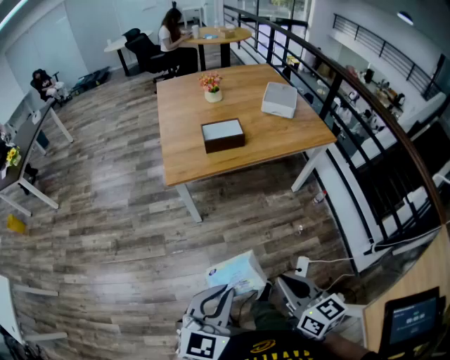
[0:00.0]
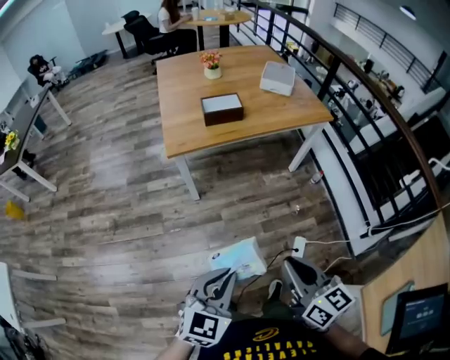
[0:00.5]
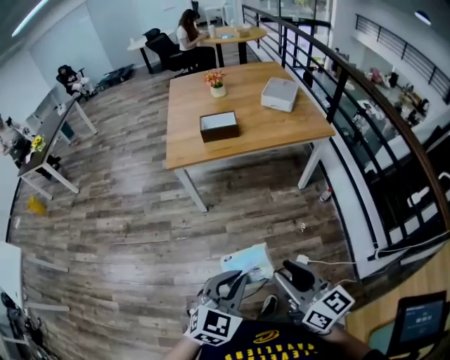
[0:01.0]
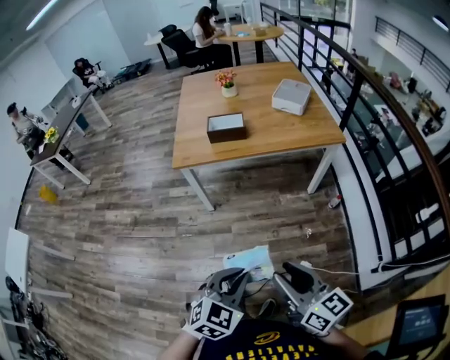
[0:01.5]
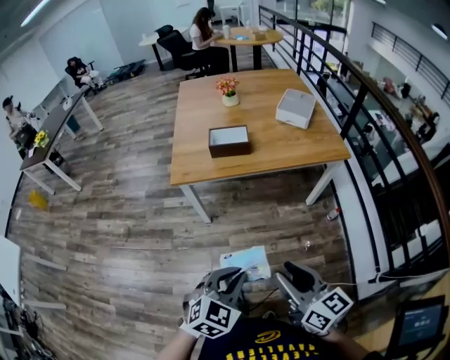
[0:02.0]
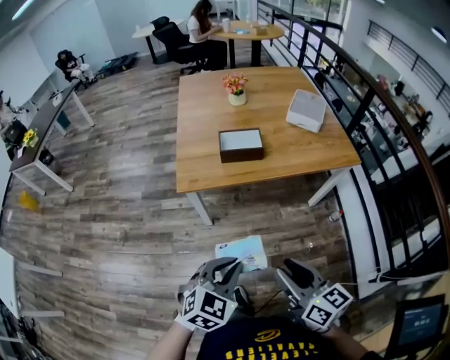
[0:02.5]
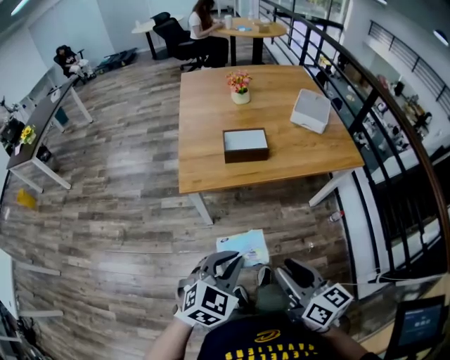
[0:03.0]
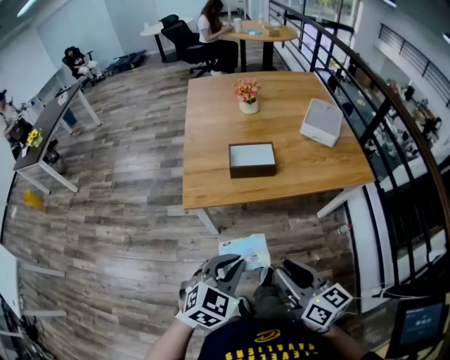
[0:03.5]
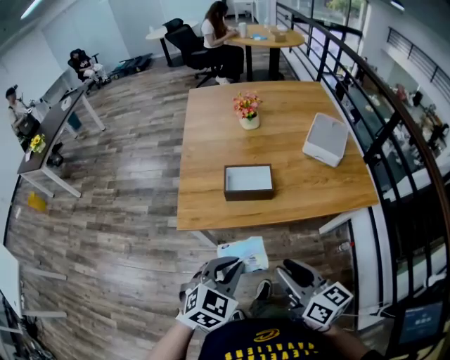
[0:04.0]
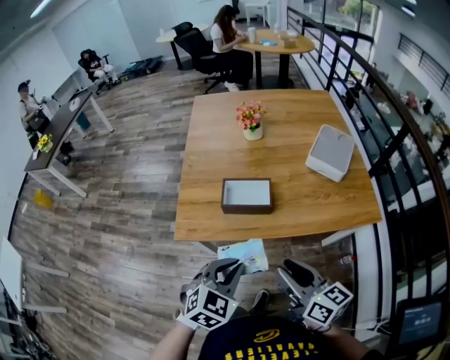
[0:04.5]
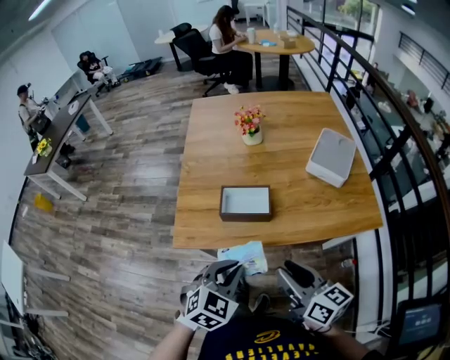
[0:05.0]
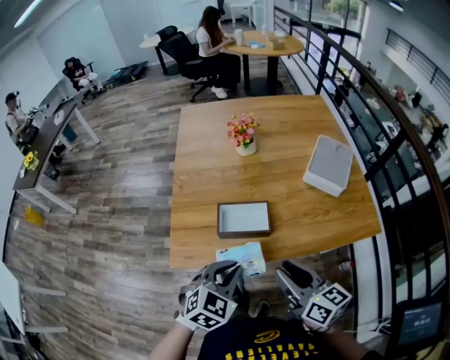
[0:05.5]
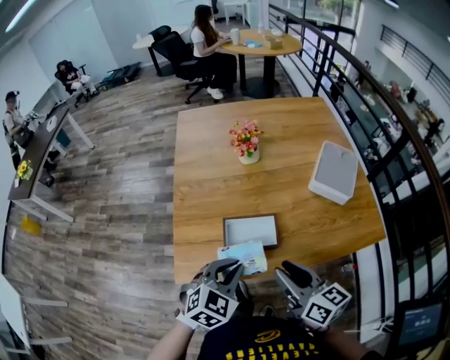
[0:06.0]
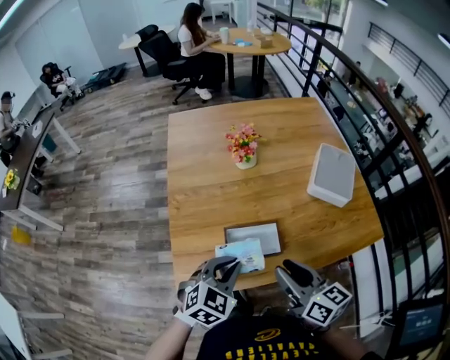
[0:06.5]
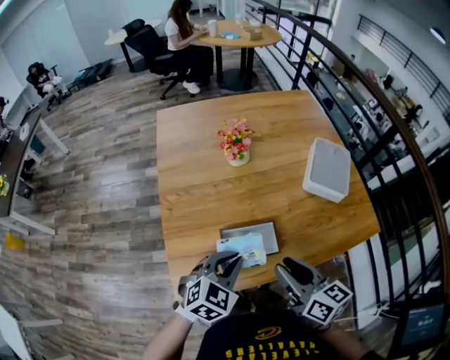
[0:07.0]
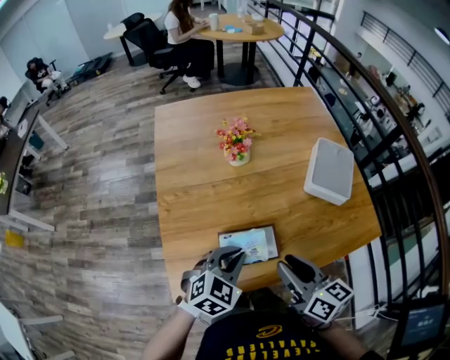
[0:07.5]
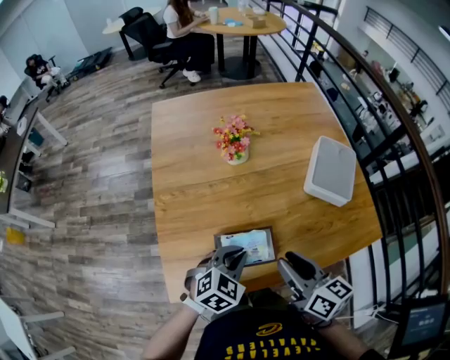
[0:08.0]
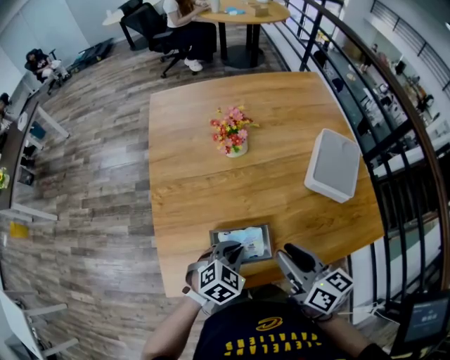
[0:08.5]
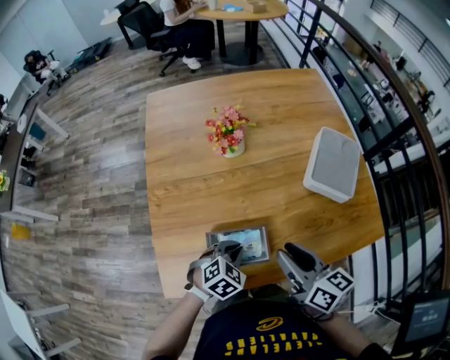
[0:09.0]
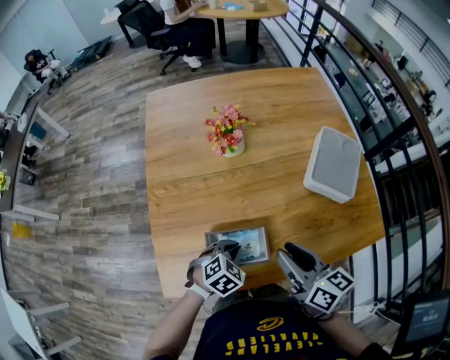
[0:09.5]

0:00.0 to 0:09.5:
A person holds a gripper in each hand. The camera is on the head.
0:00.0 to 0:02.0: The two grippers go some 15 cm to the right and forward. The right gripper opens its fingers.
0:02.0 to 0:04.0: Both grippers travel together forward, approximately 25 cm.
0:04.0 to 0:05.5: Both grippers travel together forward, approximately 15 cm.
0:05.5 to 0:07.5: The two grippers go some 15 cm forward.
0:07.5 to 0:09.5: The left gripper goes some 15 cm downward, and rotates about 20 degrees. Meanwhile the right gripper moves forward, roughly 5 cm.

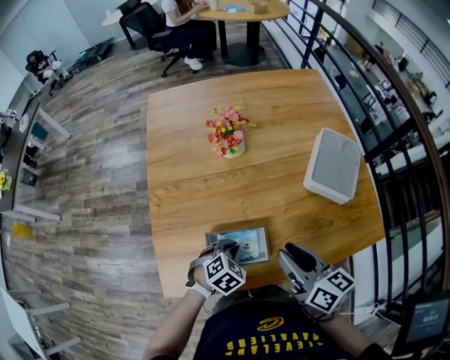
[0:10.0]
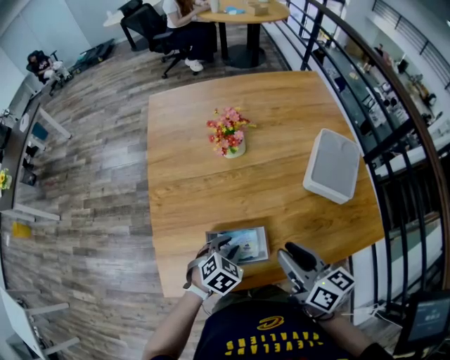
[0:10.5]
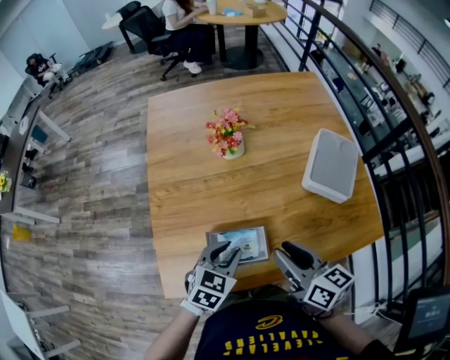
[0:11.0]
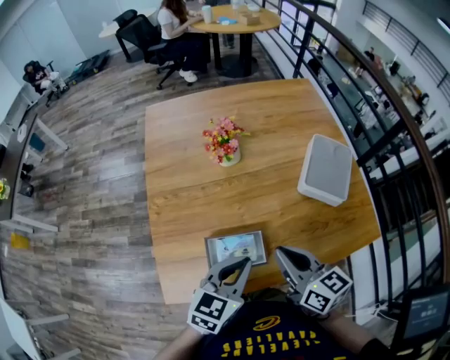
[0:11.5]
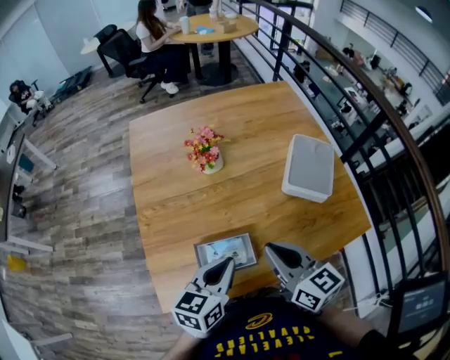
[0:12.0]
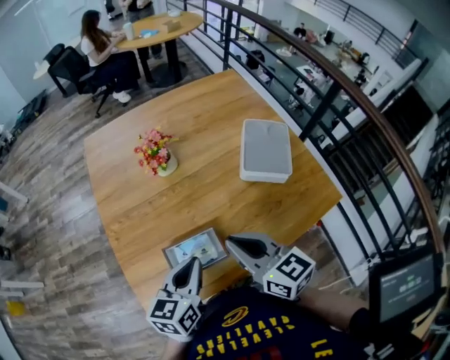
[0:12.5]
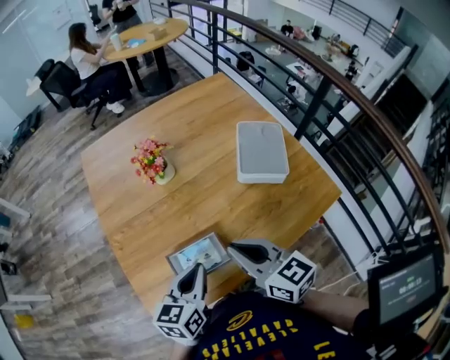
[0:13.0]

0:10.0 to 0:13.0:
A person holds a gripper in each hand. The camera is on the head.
0:10.0 to 0:11.5: The right gripper closes its fingers. The left gripper travels upward by about 20 cm, points its fingers some 40 degrees further upward, and opens, then closes once more.
0:11.5 to 0:13.0: The grippers stay close to where they were, moving slightly.

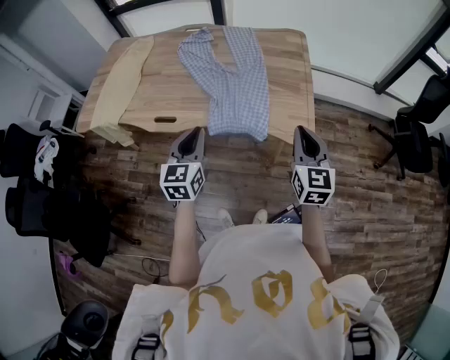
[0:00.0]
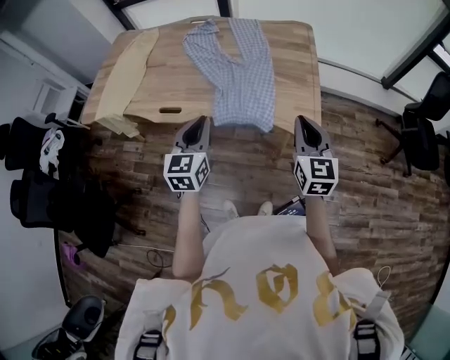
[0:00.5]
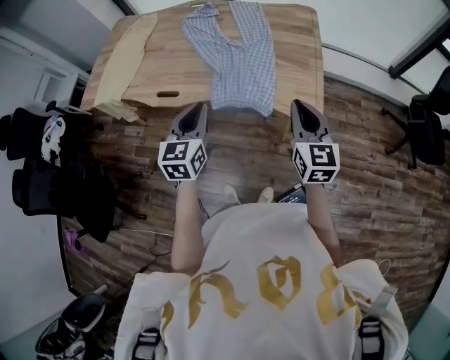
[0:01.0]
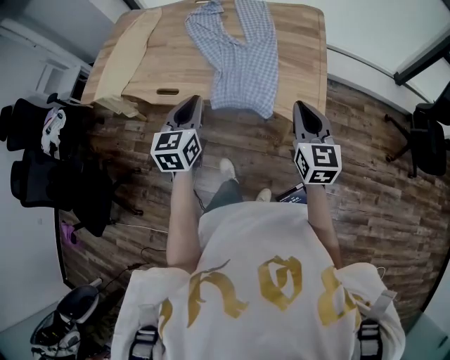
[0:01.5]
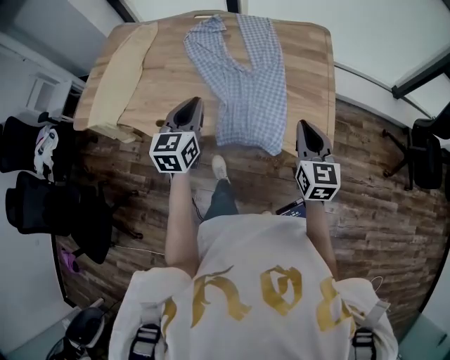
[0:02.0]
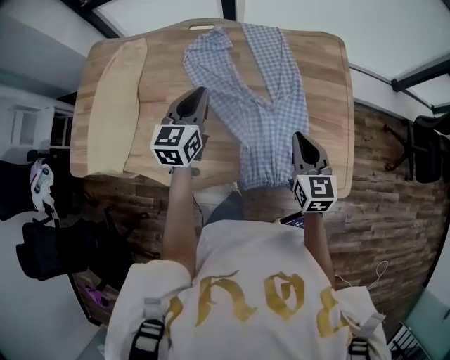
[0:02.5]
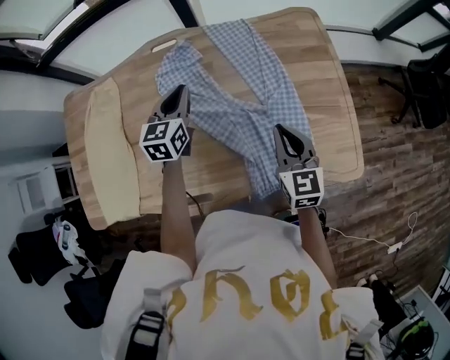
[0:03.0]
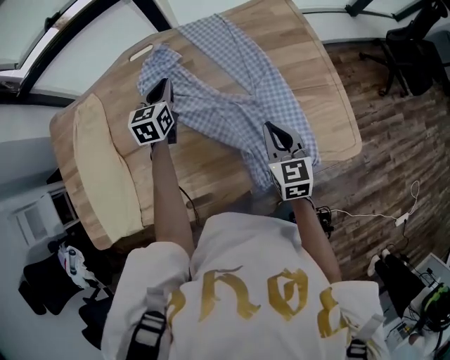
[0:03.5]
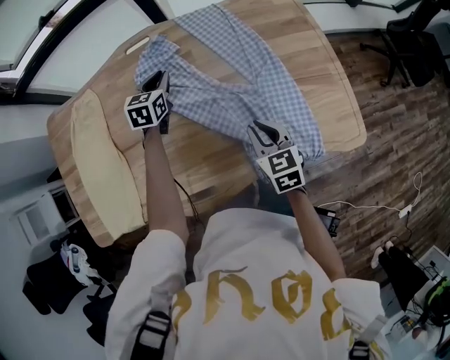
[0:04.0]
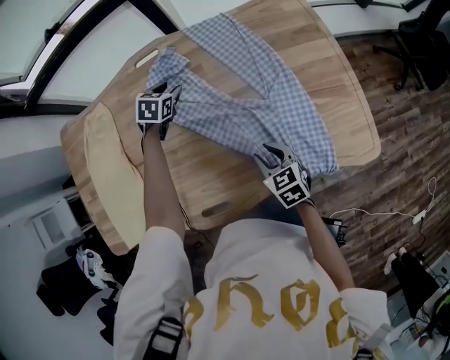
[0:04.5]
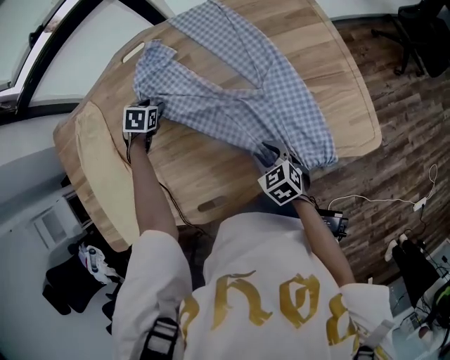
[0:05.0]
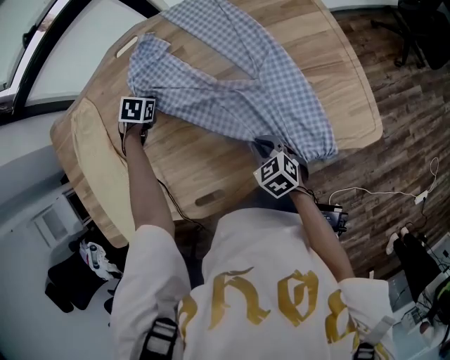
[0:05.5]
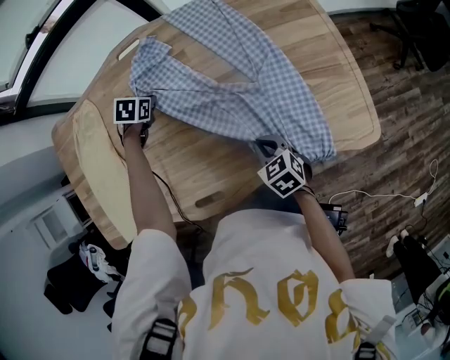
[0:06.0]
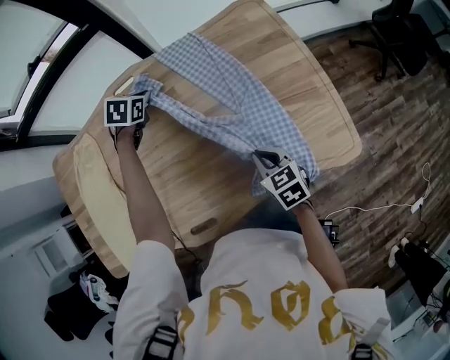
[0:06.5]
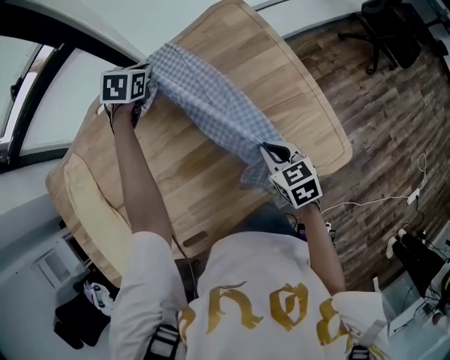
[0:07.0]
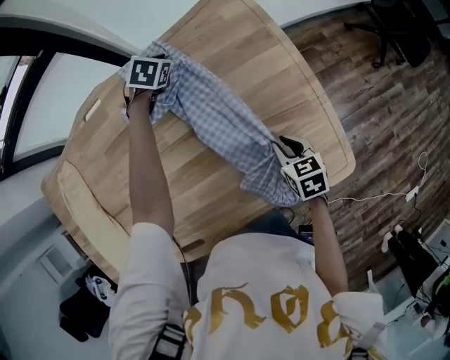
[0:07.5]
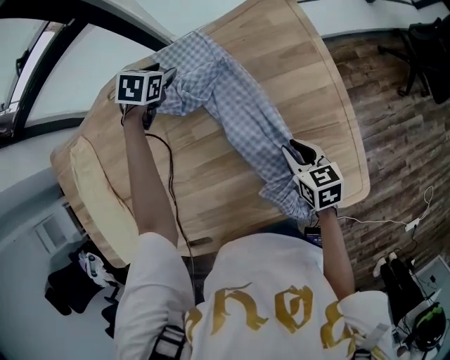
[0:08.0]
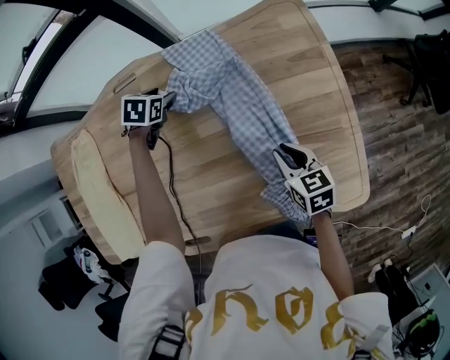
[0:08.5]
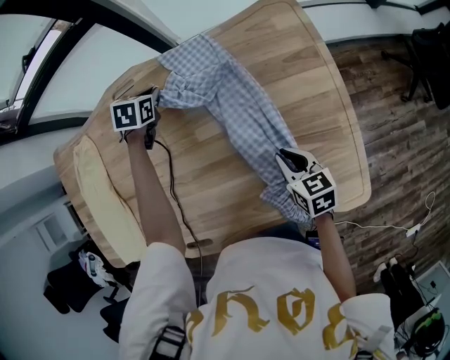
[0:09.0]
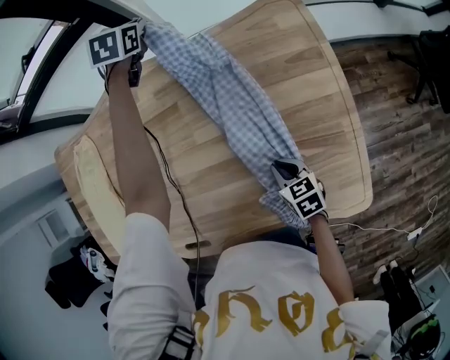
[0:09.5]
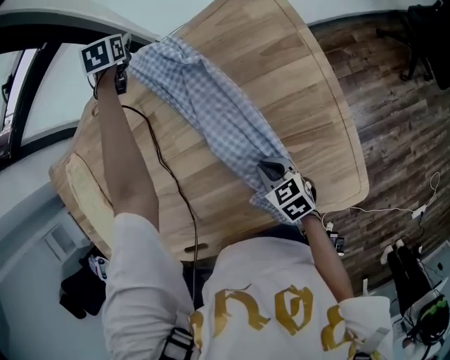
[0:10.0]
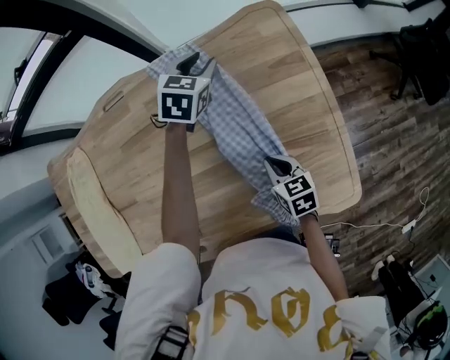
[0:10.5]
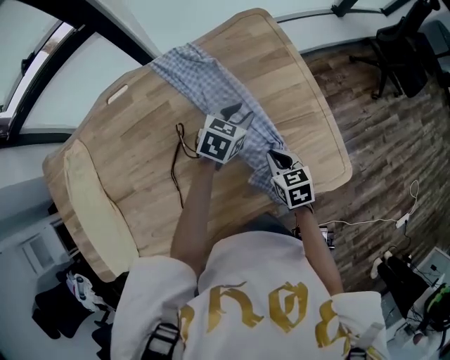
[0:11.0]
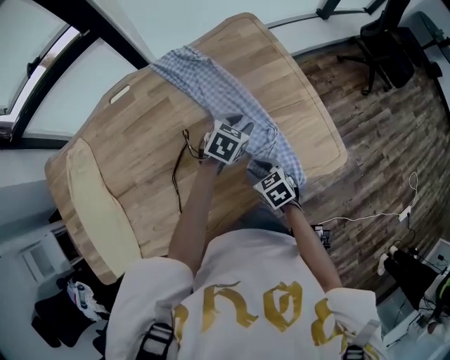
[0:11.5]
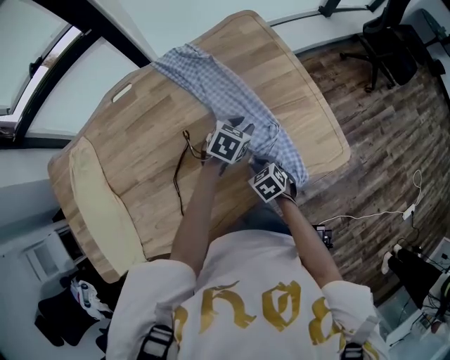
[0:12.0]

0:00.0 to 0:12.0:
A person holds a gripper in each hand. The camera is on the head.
0:00.0 to 0:02.0: Both grippers move forward, approximately 15 cm.
0:02.0 to 0:04.0: The left gripper is displaced forward and downward by about 40 cm, and swivels roughly 30 degrees, while the right gripper moves to the left, forward and downward, approximately 30 cm, and rotates about 20 degrees.
0:04.0 to 0:06.0: The two grippers go roughly 10 cm downward. The left gripper tilts its fingers about 40 degrees downward, and opens, then closes once more; the right gripper changes its angle by some 20 degrees, and opens, then closes once more.
0:06.0 to 0:08.0: The right gripper moves to the right and forward, some 25 cm, and changes its angle by about 20 degrees. Meanwhile the left gripper moves forward and to the right, some 30 cm, and opens.
0:08.0 to 0:10.0: The left gripper goes up and down, approximately 15 cm each way, reversing 2 times, turns by about 20 degrees, and closes, then opens again. Meanwhile the right gripper ends up roughly 10 cm from where it was.
0:10.0 to 0:12.0: The left gripper shifts by some 50 cm, and swivels about 40 degrees; the right gripper changes place by some 15 cm.

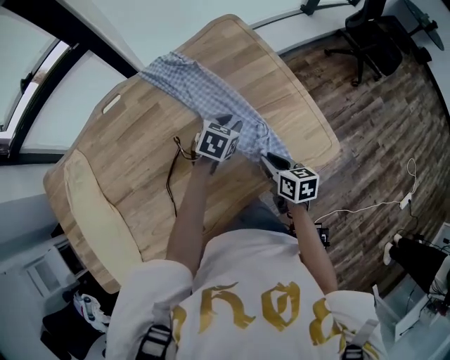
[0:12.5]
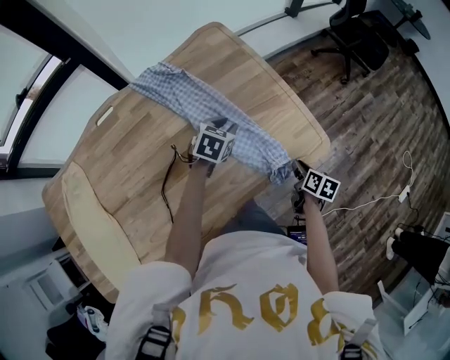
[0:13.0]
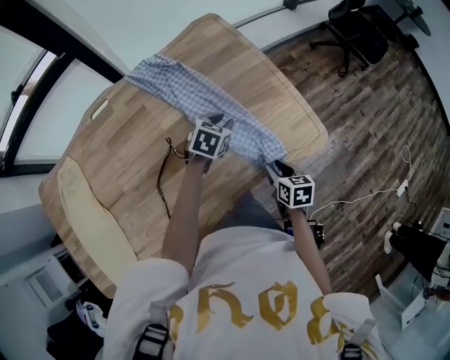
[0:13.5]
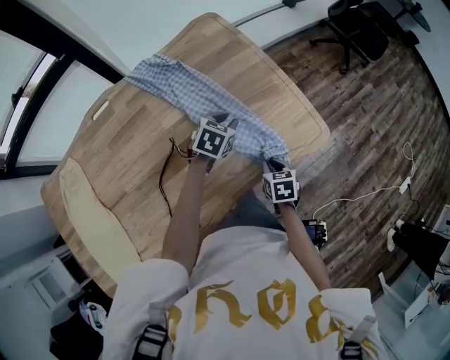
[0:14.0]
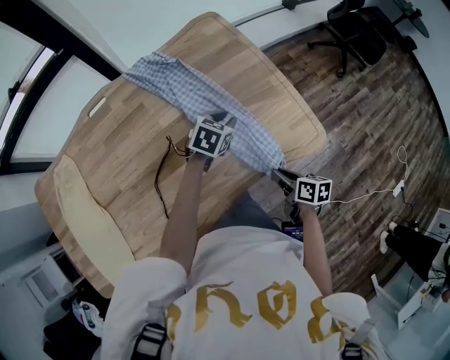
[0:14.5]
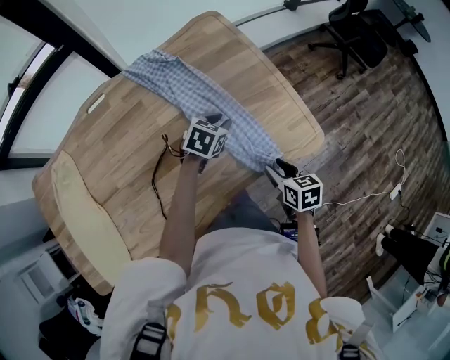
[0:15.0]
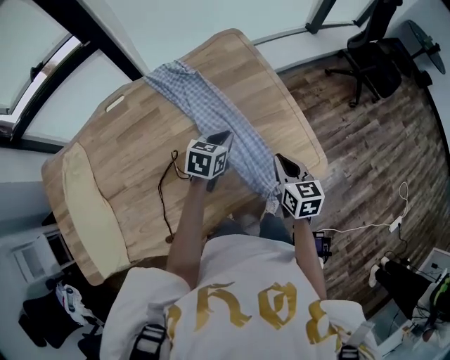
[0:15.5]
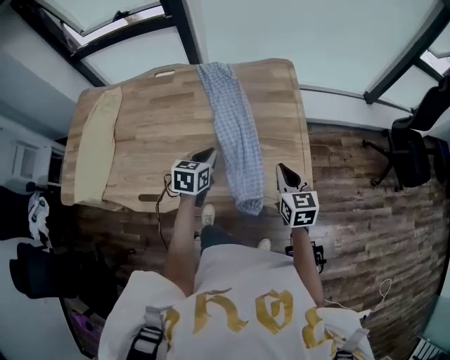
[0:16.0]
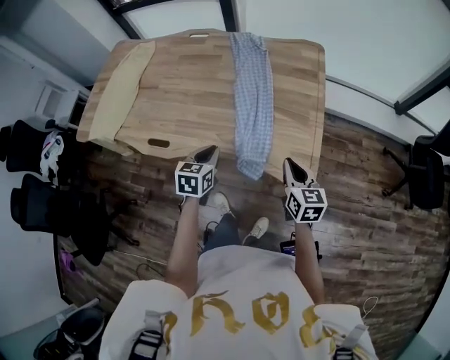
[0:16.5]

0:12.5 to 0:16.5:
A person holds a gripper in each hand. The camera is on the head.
0:12.5 to 0:14.5: The right gripper travels to the right and backward by some 10 cm.
0:14.5 to 0:16.5: The left gripper changes place by some 25 cm, and swivels roughly 60 degrees, while the right gripper moves roughly 20 cm, twists about 50 degrees counterclockwise, seen from behind, and opens and closes again.
